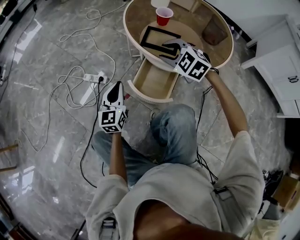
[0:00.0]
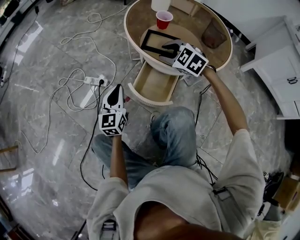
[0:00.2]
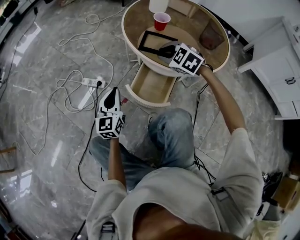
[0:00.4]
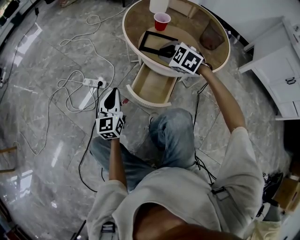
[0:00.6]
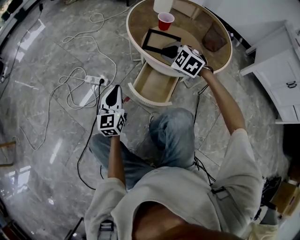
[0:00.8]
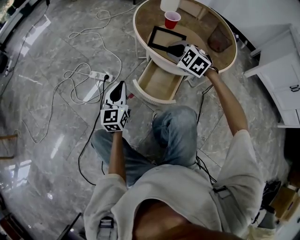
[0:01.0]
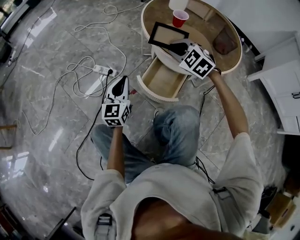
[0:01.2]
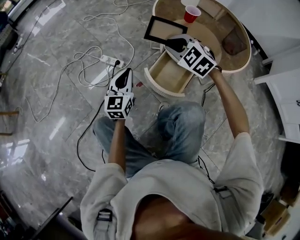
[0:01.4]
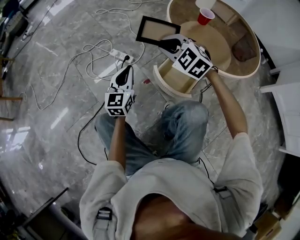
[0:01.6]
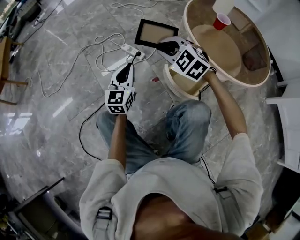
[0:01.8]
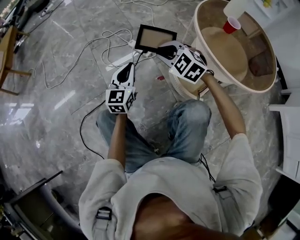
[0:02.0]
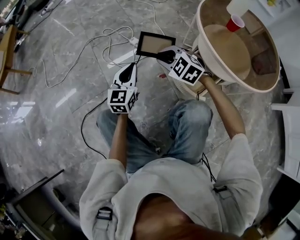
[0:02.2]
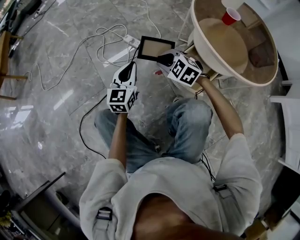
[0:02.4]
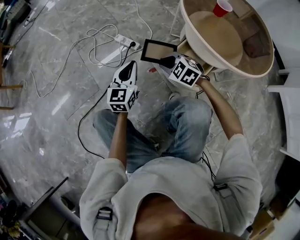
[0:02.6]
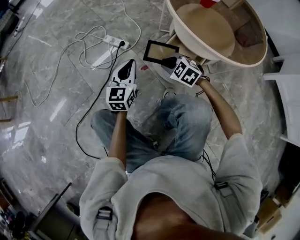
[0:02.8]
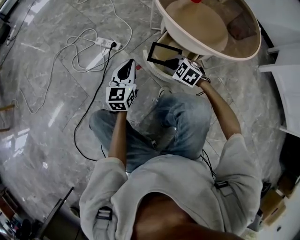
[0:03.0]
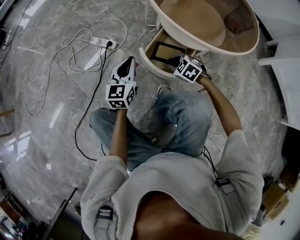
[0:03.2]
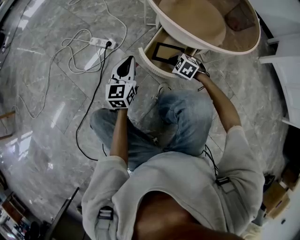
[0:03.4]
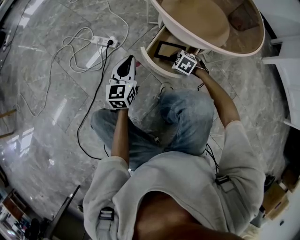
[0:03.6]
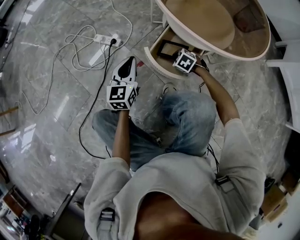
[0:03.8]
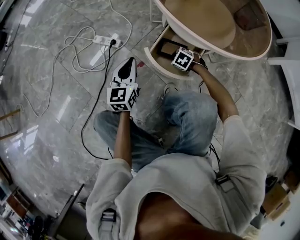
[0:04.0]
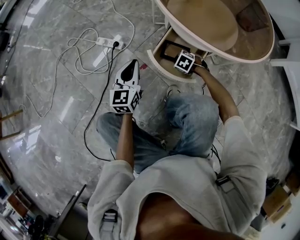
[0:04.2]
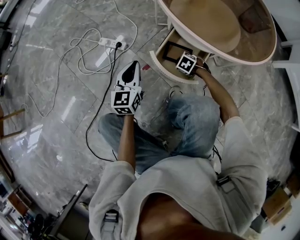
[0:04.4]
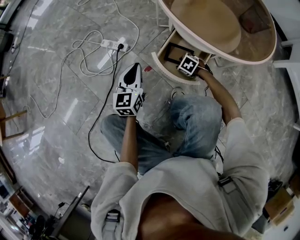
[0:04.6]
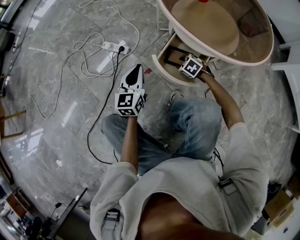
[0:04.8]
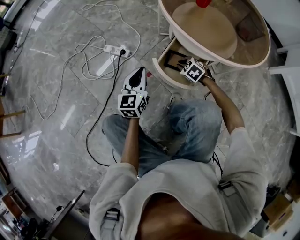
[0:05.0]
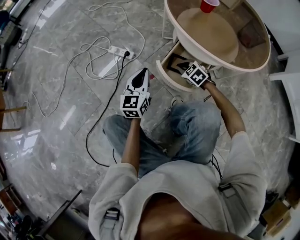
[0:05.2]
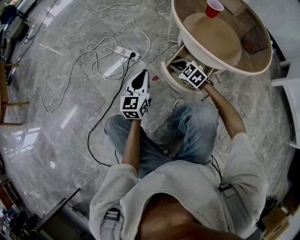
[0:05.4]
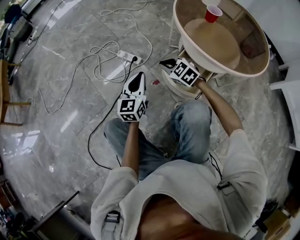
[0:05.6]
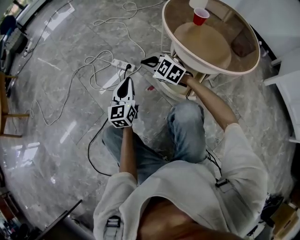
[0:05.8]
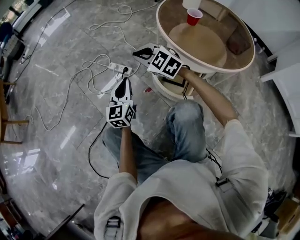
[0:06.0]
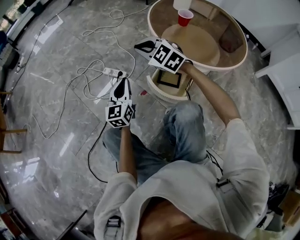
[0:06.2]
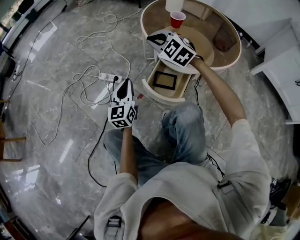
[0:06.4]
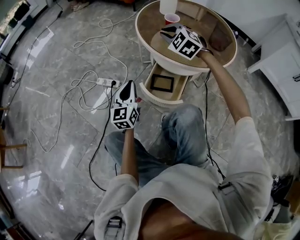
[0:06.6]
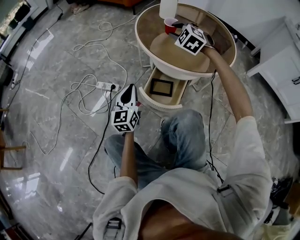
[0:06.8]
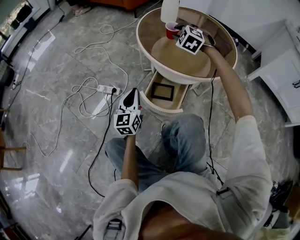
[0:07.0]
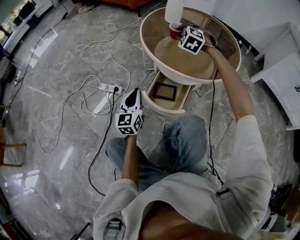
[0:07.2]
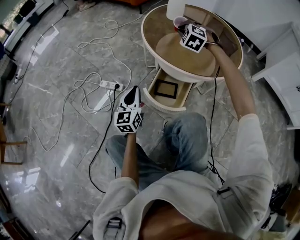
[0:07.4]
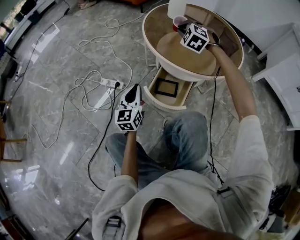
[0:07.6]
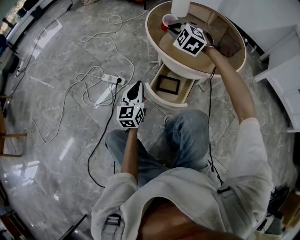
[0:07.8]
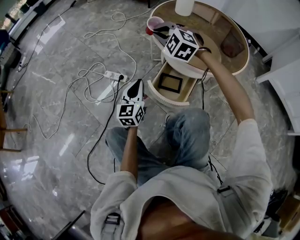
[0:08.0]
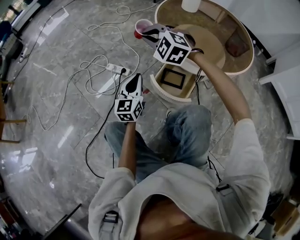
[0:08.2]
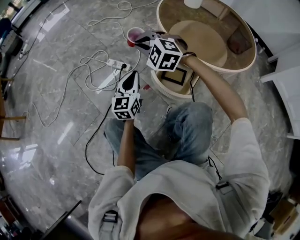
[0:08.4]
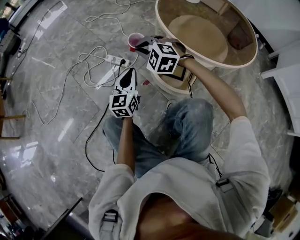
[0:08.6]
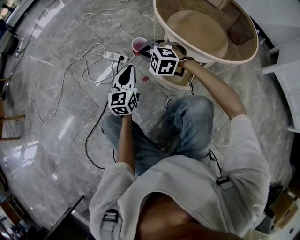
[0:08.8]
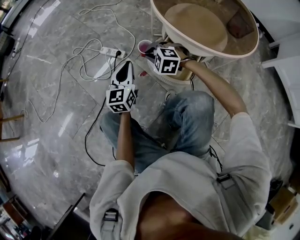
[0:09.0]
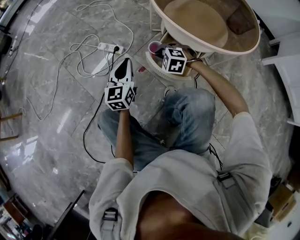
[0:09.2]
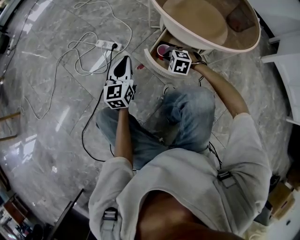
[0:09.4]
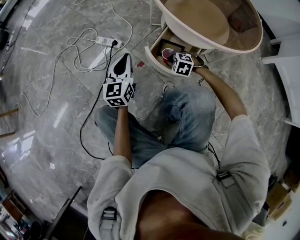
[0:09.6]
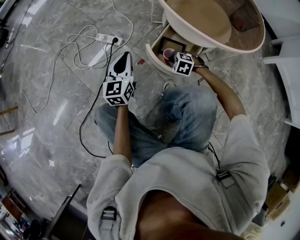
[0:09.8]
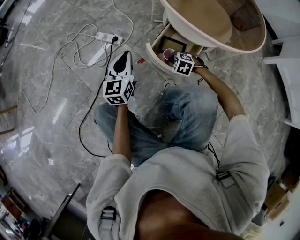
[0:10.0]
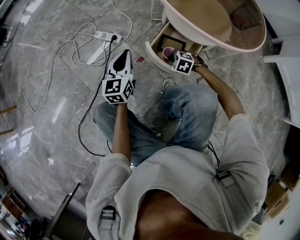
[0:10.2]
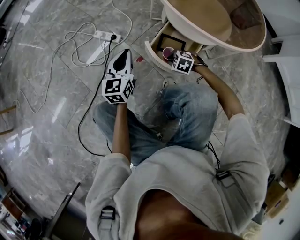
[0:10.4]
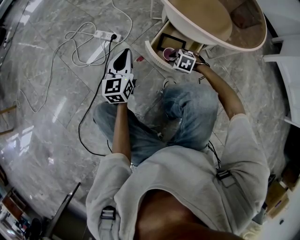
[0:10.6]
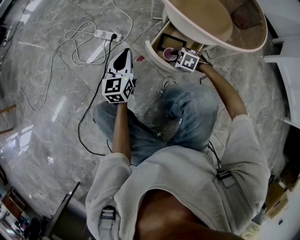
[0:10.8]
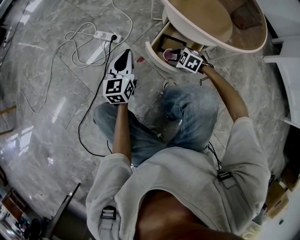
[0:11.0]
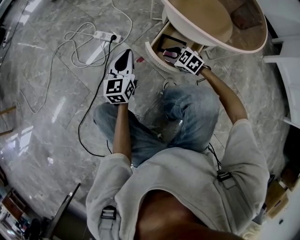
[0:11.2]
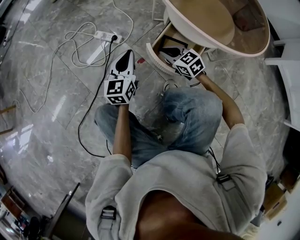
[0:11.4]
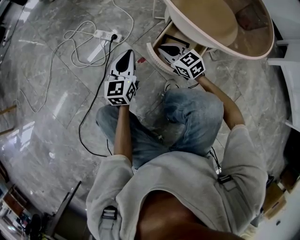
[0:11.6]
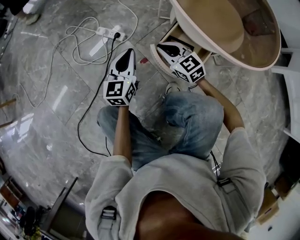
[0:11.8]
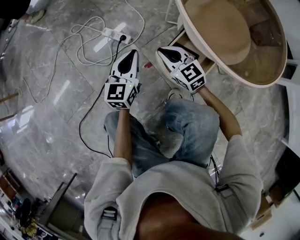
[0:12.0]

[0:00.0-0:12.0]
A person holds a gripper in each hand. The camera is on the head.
0:00.0 to 0:01.6: The right gripper heads to the left, covering approximately 15 cm, and closes its fingers. The left gripper heads to the left, covering approximately 10 cm.
0:01.6 to 0:03.0: The right gripper moves downward, about 25 cm, and changes its angle by some 30 degrees. The left gripper heads downward and to the right, covering roughly 10 cm.
0:03.0 to 0:04.4: The right gripper is displaced downward by some 15 cm, and turns by approximately 20 degrees.
0:04.4 to 0:06.0: The left gripper heads upward, covering about 10 cm. The right gripper travels upward by approximately 40 cm, tips its fingers upward by about 50 degrees, and opens, then closes again.
0:06.0 to 0:07.6: The left gripper moves some 10 cm; the right gripper shifts by about 30 cm, turns by roughly 50 degrees, and opens and closes again.
0:07.6 to 0:09.0: The right gripper is displaced to the left, downward and backward by roughly 35 cm, and changes its angle by approximately 30 degrees, while the left gripper heads to the left, covering roughly 5 cm.
0:09.0 to 0:10.4: The right gripper travels downward, to the right and backward by about 20 cm, and swivels some 30 degrees.
0:10.4 to 0:12.0: The right gripper is displaced upward, forward and to the left by roughly 20 cm, tips its fingers upward by some 50 degrees, and opens and closes again. Meanwhile the left gripper moves forward, approximately 5 cm.

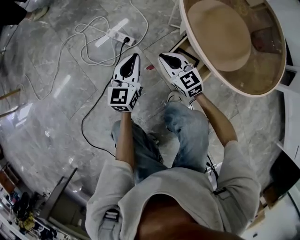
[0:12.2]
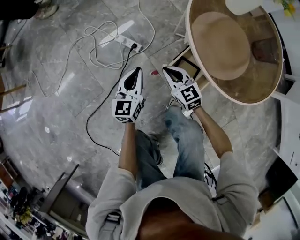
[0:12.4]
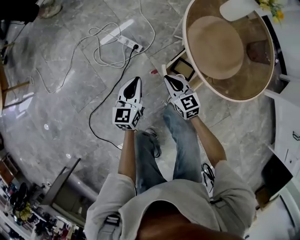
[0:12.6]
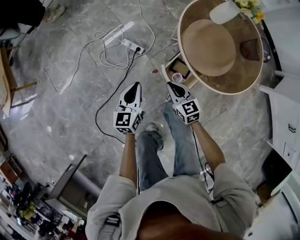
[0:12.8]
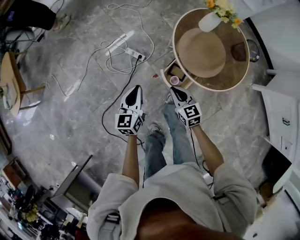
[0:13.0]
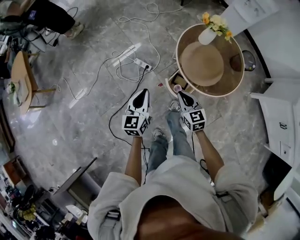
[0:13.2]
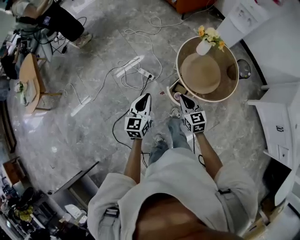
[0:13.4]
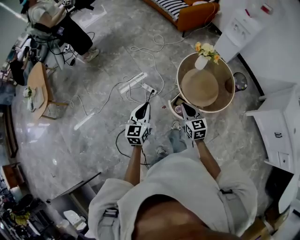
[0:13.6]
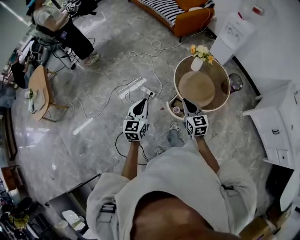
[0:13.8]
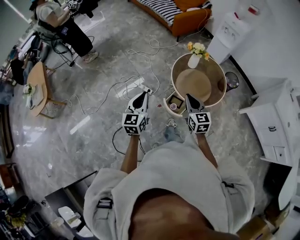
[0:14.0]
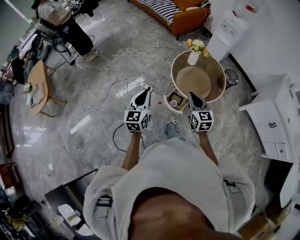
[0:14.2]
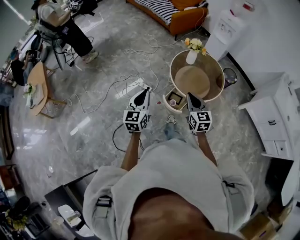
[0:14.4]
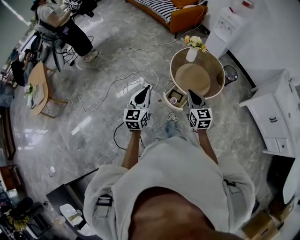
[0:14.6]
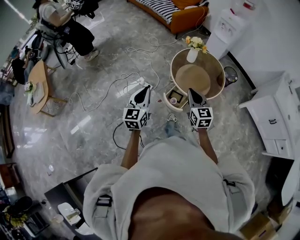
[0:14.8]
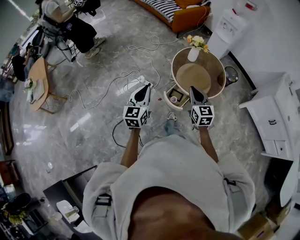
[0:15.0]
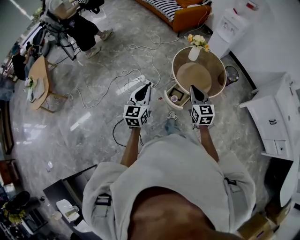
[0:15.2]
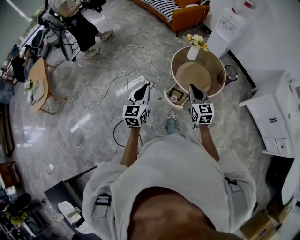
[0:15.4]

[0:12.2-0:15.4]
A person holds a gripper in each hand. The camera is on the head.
0:12.2 to 0:13.8: Both grippers move upward, about 60 cm. The right gripper swivels roughly 20 degrees.
0:13.8 to 0:15.4: The left gripper travels backward by roughly 10 cm. The right gripper heads backward and upward, covering about 10 cm.

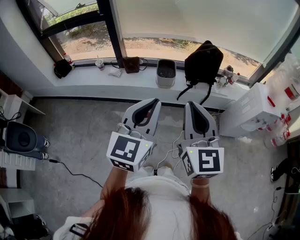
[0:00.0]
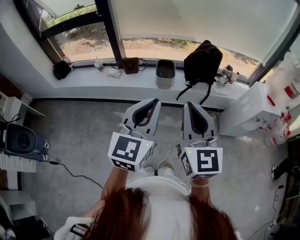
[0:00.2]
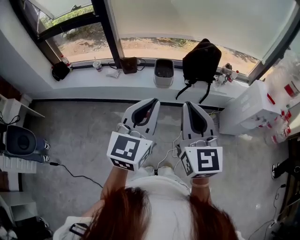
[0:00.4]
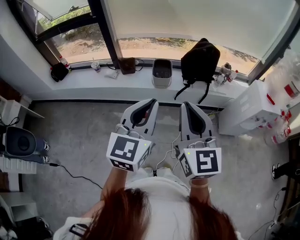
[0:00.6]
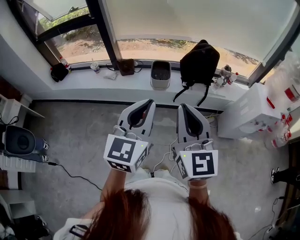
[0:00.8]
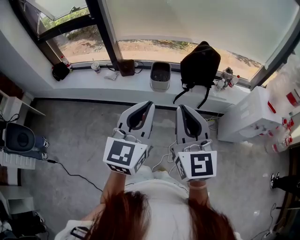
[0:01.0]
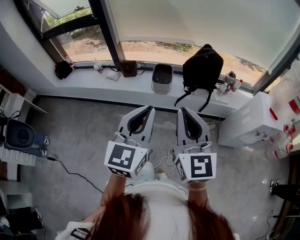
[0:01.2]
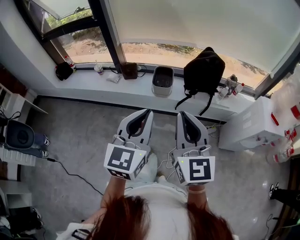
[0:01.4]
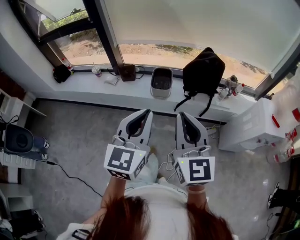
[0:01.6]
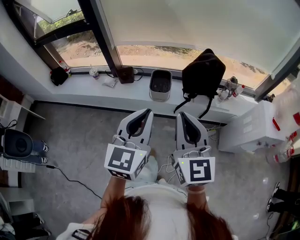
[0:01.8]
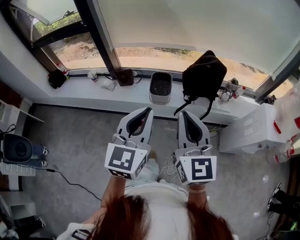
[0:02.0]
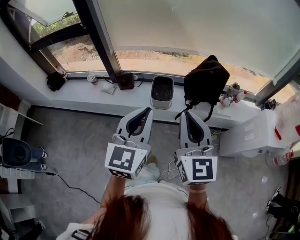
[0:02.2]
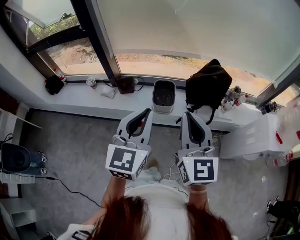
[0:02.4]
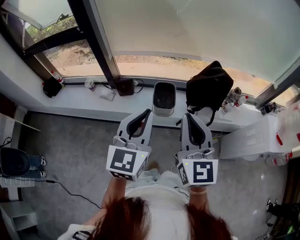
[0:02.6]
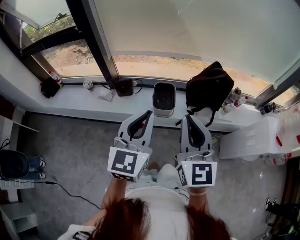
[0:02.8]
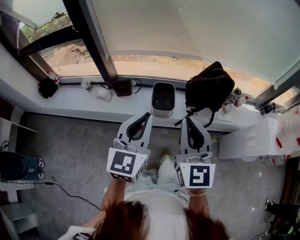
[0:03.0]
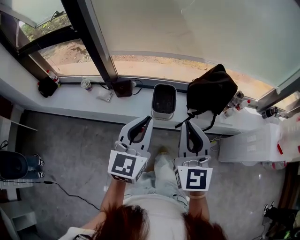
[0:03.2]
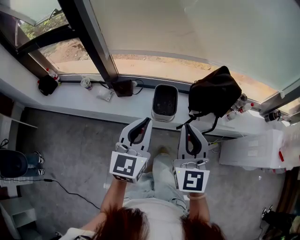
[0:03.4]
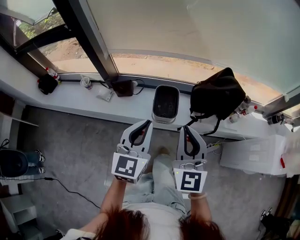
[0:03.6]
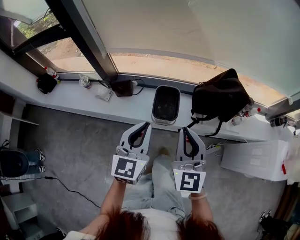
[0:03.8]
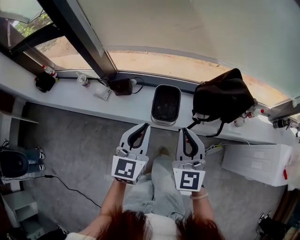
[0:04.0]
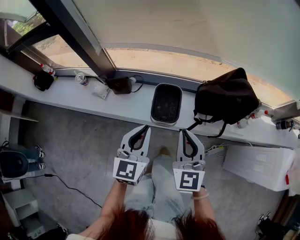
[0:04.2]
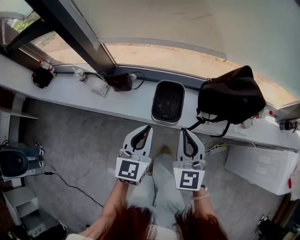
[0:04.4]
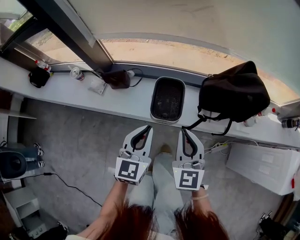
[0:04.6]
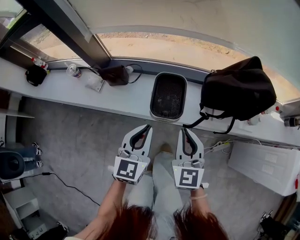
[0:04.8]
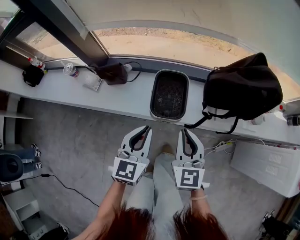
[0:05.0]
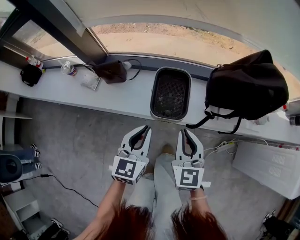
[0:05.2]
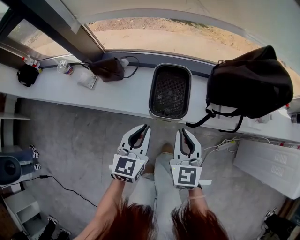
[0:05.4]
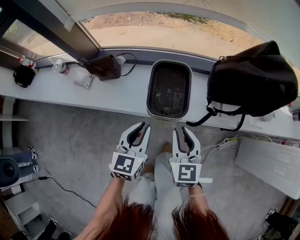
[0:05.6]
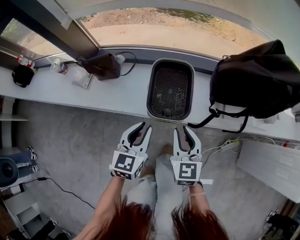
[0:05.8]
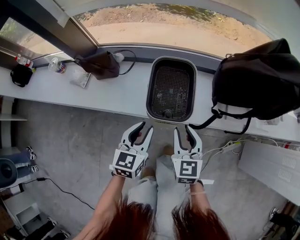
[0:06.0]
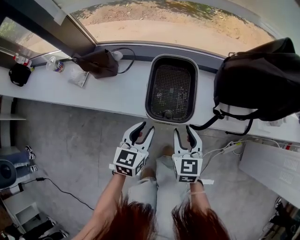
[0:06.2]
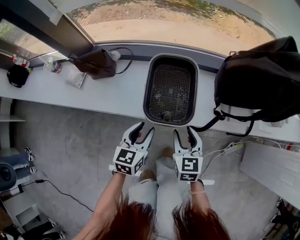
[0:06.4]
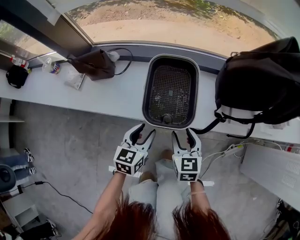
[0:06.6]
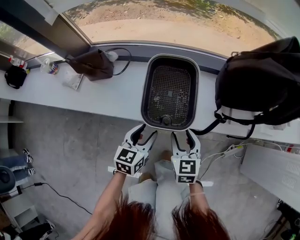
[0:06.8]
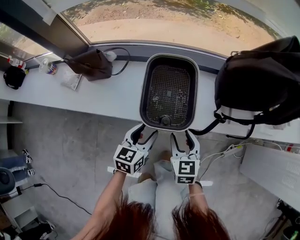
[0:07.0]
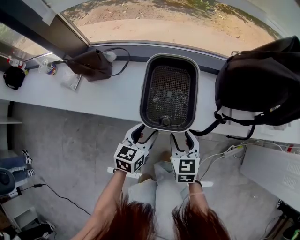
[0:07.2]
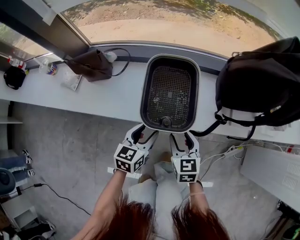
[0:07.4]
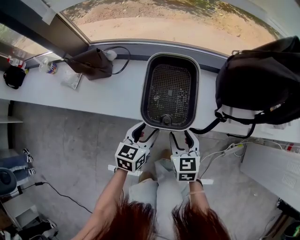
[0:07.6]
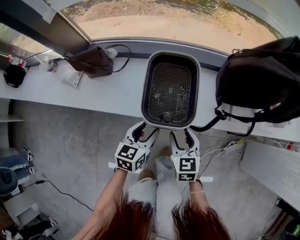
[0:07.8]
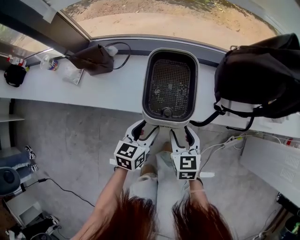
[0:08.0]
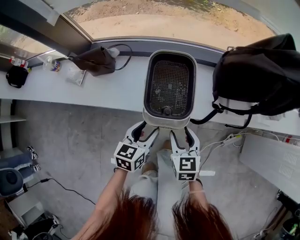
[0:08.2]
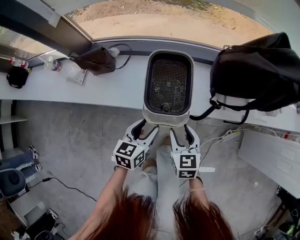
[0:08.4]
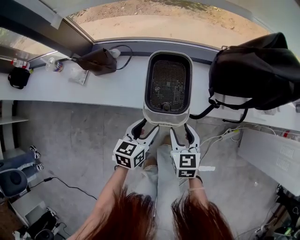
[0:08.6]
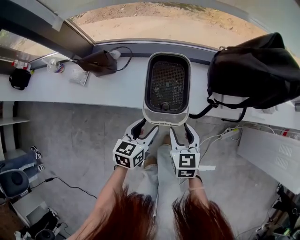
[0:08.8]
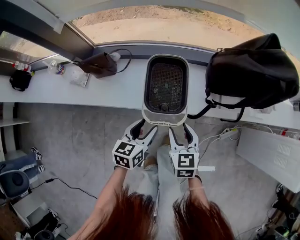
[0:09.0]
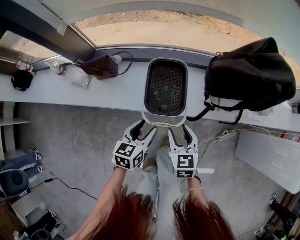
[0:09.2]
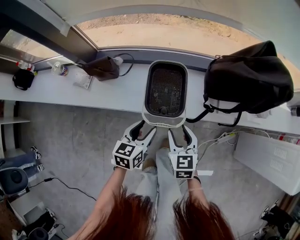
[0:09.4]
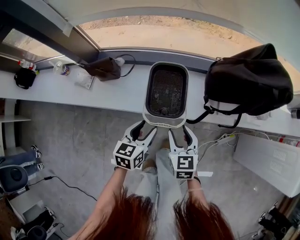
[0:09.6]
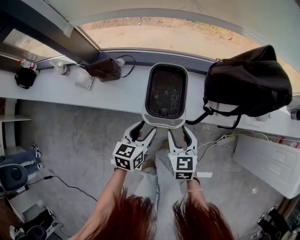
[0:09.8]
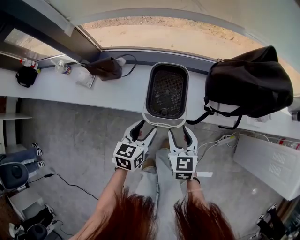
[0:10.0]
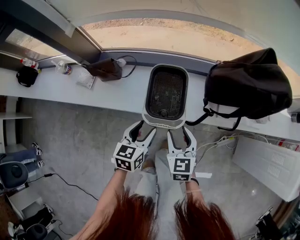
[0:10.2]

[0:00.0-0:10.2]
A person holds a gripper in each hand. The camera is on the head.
0:00.0 to 0:01.4: Both grippers travel together forward and to the right, roughly 10 cm.
0:01.4 to 0:03.0: Both grippers move forward, approximately 25 cm.
0:03.0 to 0:04.4: The two grippers go about 30 cm downward and forward.
0:04.4 to 0:05.8: The two grippers go roughly 30 cm downward.
0:05.8 to 0:07.2: Both grippers travel together downward, some 15 cm. The right gripper opens. The left gripper opens its fingers.
0:07.2 to 0:08.8: The two grippers go about 10 cm upward.
0:08.8 to 0:10.2: The two grippers go some 5 cm upward.
